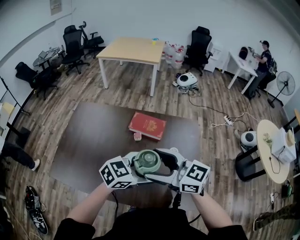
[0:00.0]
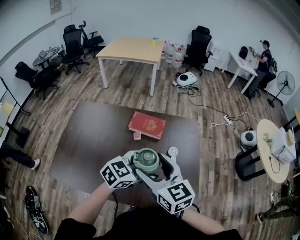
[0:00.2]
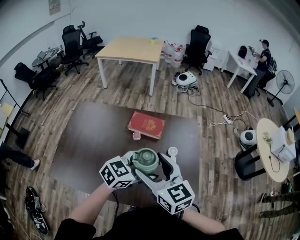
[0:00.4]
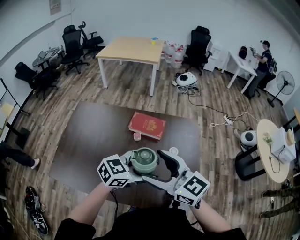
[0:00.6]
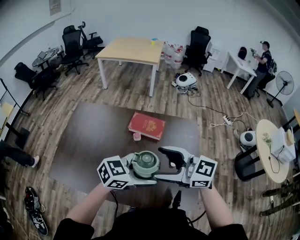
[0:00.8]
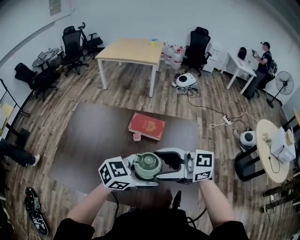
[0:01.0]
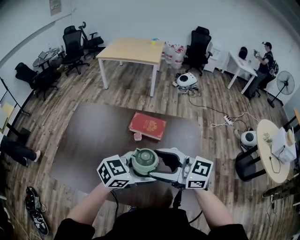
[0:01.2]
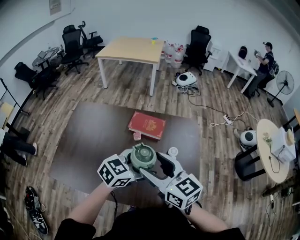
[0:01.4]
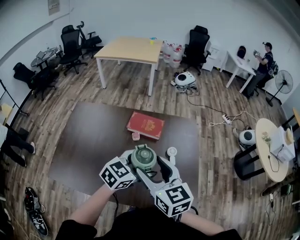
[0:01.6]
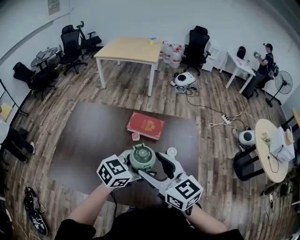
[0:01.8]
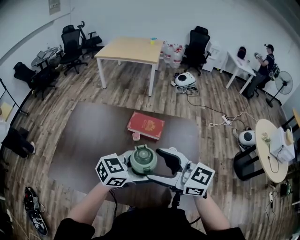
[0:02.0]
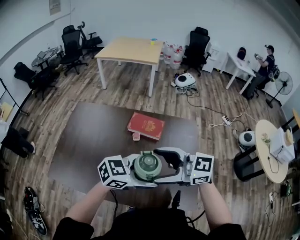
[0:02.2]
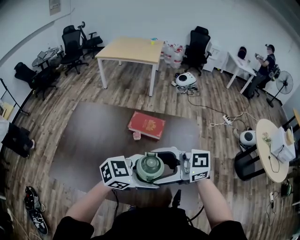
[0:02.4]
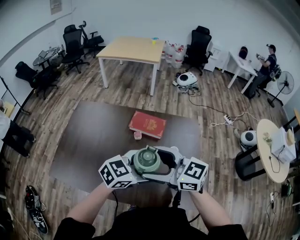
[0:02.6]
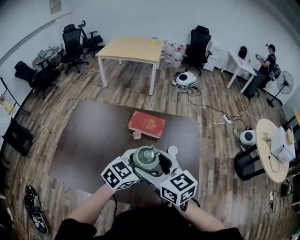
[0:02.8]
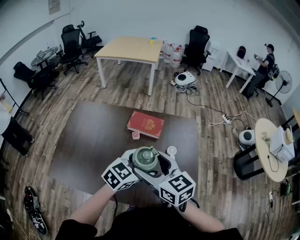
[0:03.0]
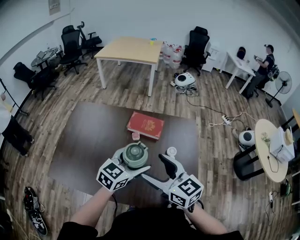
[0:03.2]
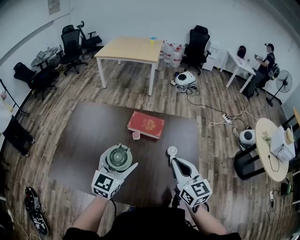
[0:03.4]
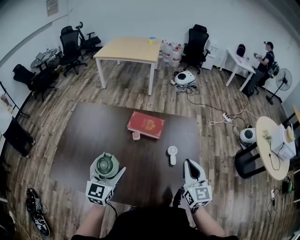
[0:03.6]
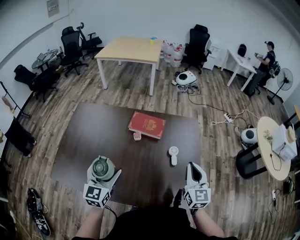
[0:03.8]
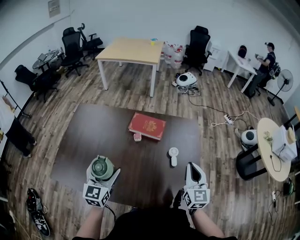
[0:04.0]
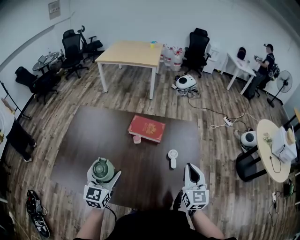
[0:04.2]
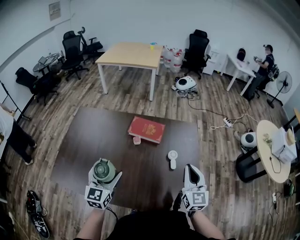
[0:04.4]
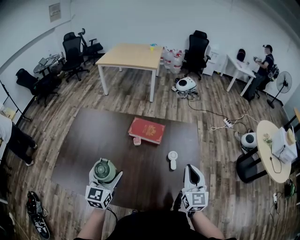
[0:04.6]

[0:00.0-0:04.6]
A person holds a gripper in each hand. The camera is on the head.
0:00.0 to 0:01.6: The right gripper rotates about 40 degrees.
0:03.0 to 0:04.6: The left gripper shifts approximately 15 cm to the left, and swivels about 40 degrees; the right gripper is displaced to the right by roughly 20 cm, changes its angle by roughly 40 degrees, and closes up.

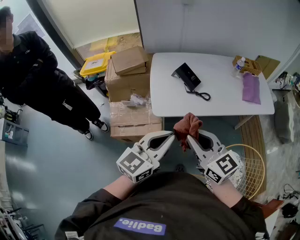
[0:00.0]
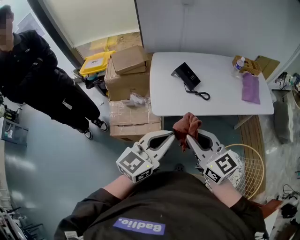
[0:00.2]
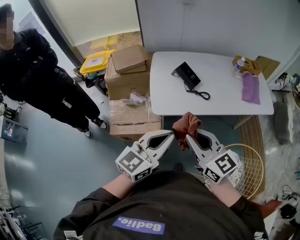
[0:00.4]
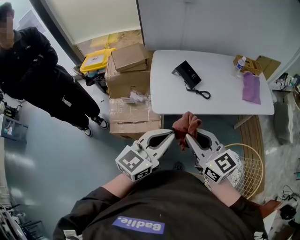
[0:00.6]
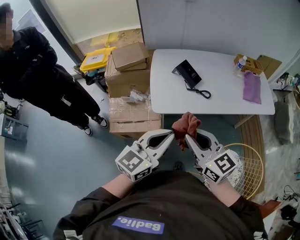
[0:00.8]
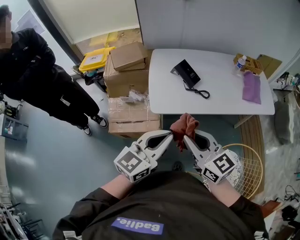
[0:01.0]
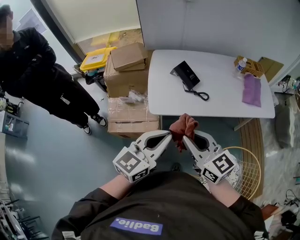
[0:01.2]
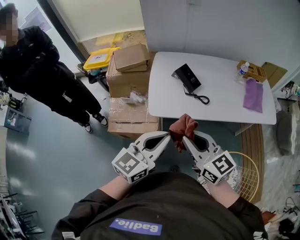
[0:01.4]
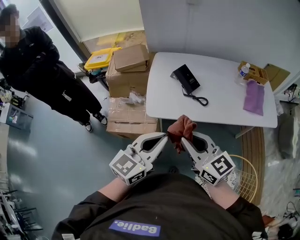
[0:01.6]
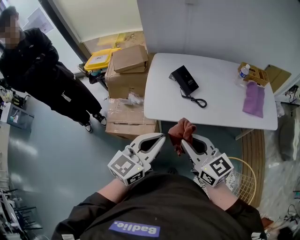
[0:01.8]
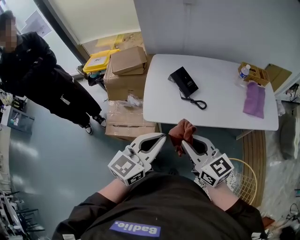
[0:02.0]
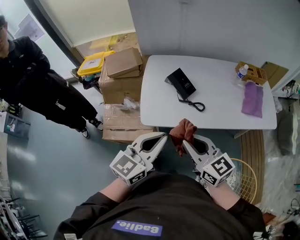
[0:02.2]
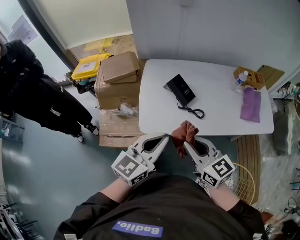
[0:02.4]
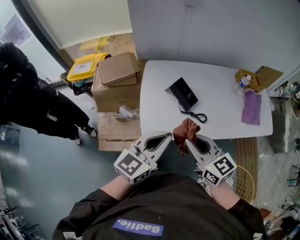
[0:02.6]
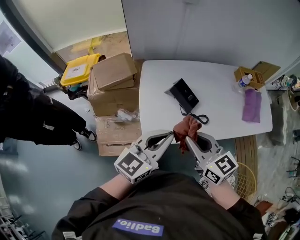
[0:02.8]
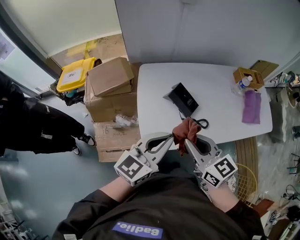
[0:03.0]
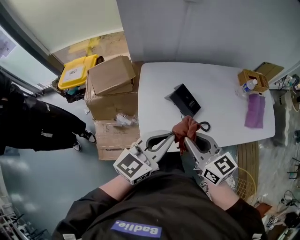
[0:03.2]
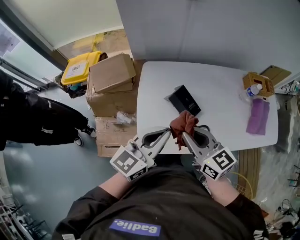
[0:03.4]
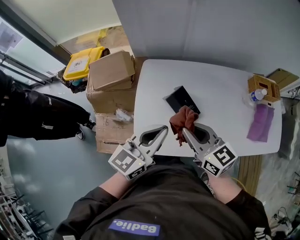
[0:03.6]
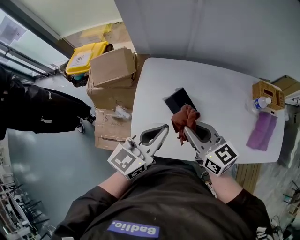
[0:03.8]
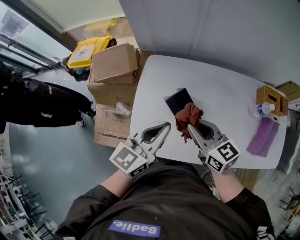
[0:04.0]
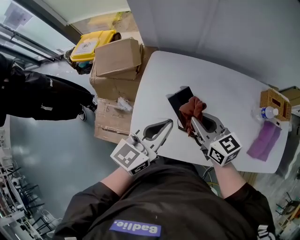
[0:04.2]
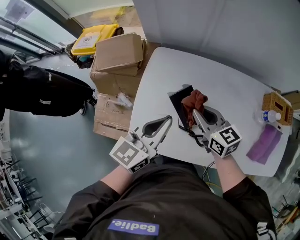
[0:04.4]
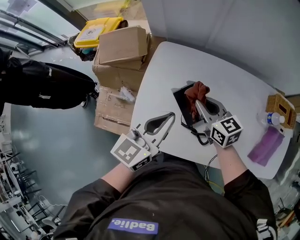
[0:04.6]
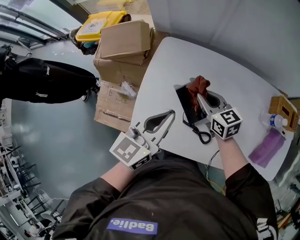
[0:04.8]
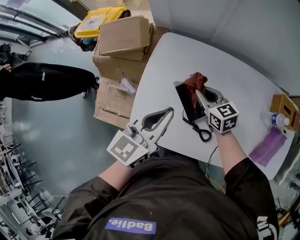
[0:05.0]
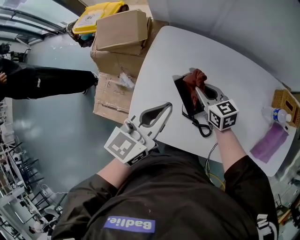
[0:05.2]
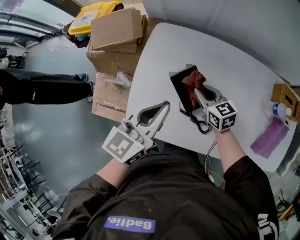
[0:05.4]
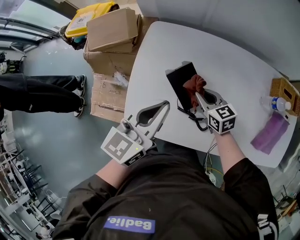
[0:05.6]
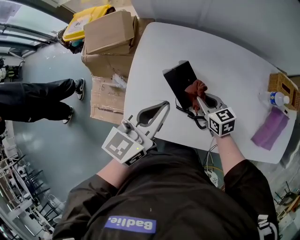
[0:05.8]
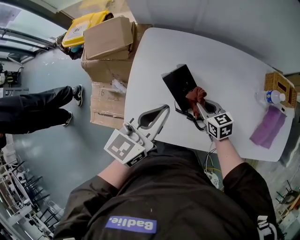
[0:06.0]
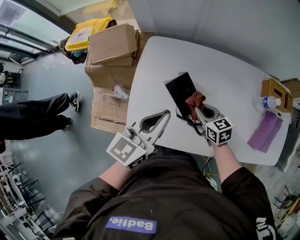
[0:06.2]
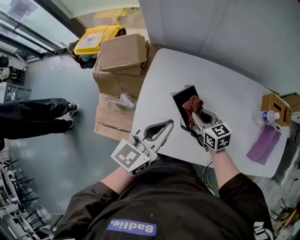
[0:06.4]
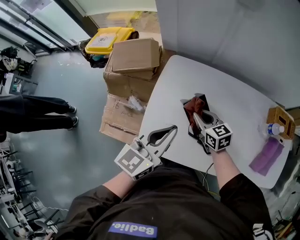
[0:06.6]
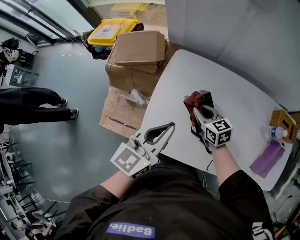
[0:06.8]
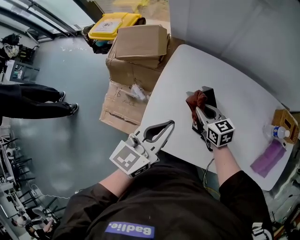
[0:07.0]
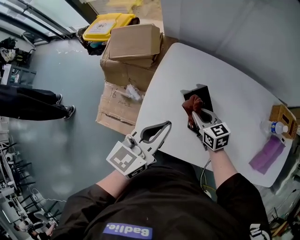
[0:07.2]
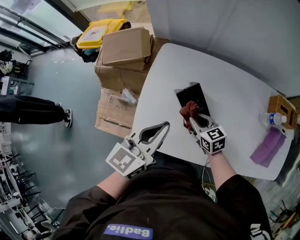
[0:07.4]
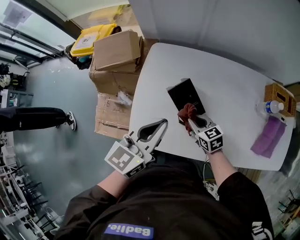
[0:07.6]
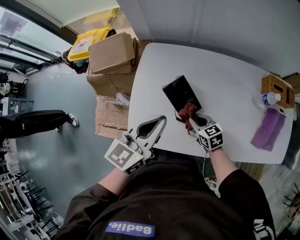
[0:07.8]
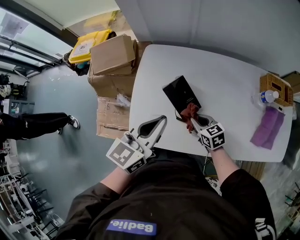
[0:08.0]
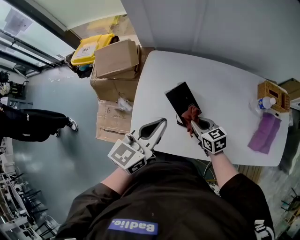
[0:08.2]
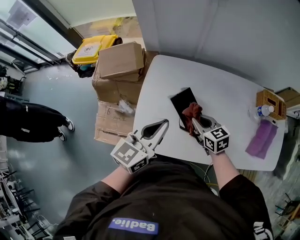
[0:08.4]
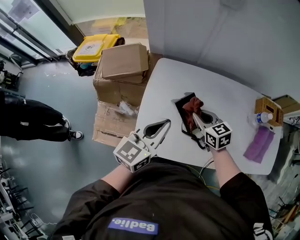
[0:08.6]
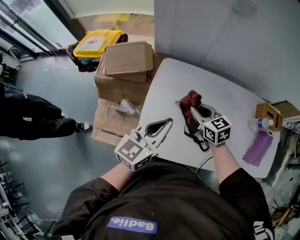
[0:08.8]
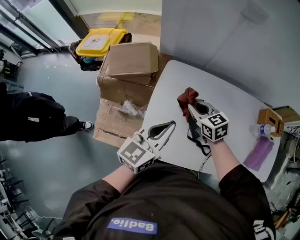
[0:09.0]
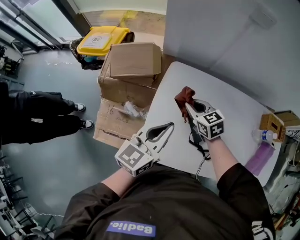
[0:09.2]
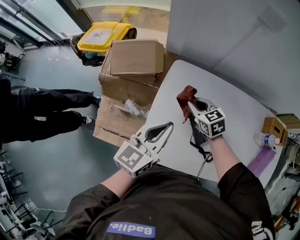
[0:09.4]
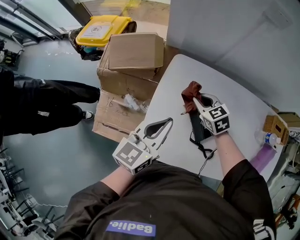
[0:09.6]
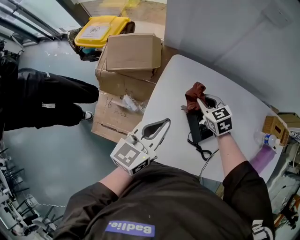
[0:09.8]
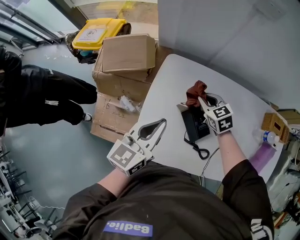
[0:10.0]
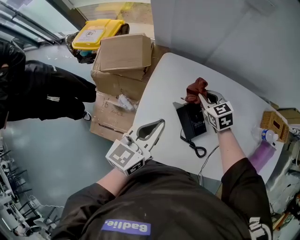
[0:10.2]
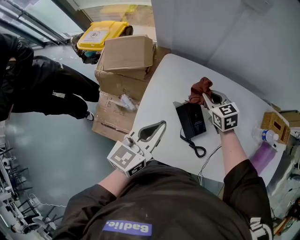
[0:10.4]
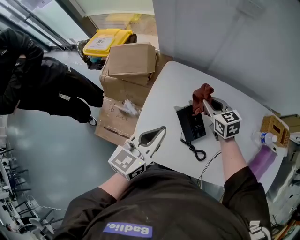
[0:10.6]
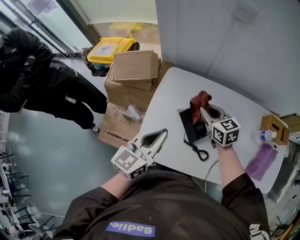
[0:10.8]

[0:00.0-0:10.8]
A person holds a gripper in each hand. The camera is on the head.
0:00.0 to 0:01.6: The grippers both shift to the right by some 5 cm.
0:01.6 to 0:03.0: The two grippers go approximately 20 cm forward.
0:03.0 to 0:04.6: The left gripper goes some 15 cm forward, to the right and downward, and swivels some 30 degrees; the right gripper goes some 25 cm forward and downward, and rotates some 20 degrees.
0:04.6 to 0:06.2: The right gripper goes about 10 cm downward and backward.
0:07.8 to 0:09.2: The left gripper shifts about 10 cm to the left and forward. Meanwhile the right gripper moves forward, to the left and upward, approximately 25 cm.
0:09.2 to 0:10.8: The right gripper goes about 10 cm to the right; the left gripper shifts some 5 cm backward.

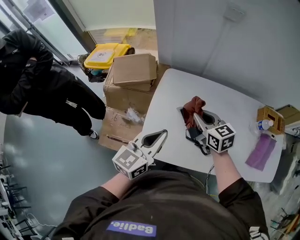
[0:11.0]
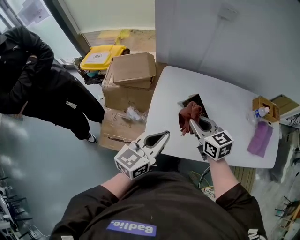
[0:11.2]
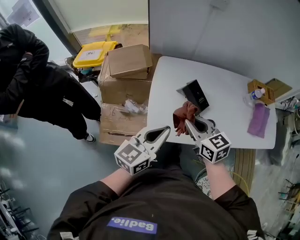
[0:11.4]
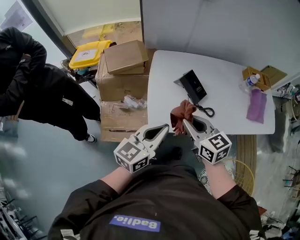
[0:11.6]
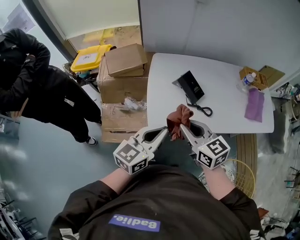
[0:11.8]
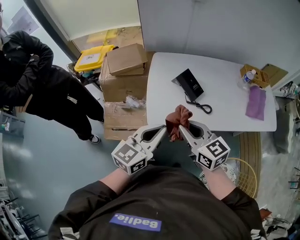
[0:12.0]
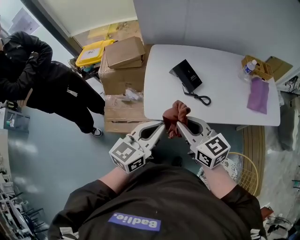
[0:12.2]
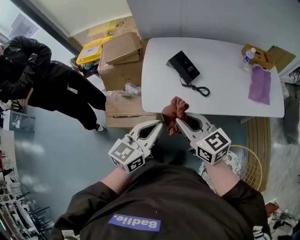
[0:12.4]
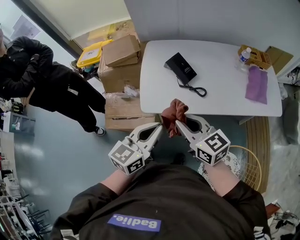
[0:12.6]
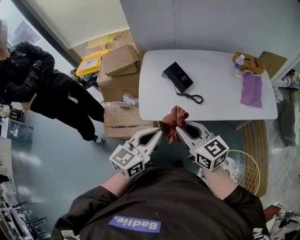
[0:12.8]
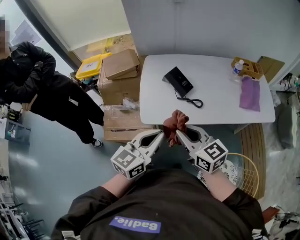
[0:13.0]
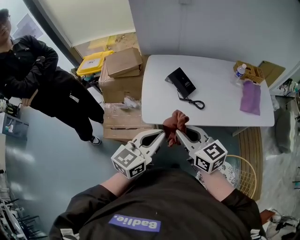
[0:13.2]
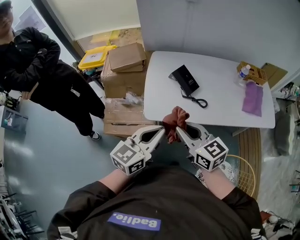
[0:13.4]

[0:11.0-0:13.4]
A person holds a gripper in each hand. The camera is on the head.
0:11.0 to 0:12.2: Both grippers move backward, about 25 cm.

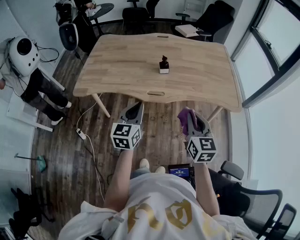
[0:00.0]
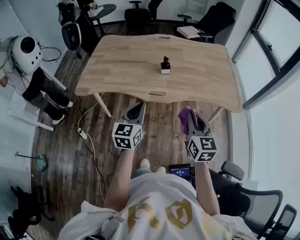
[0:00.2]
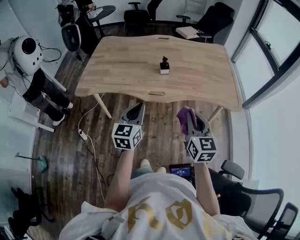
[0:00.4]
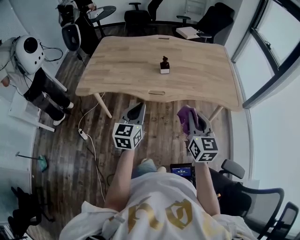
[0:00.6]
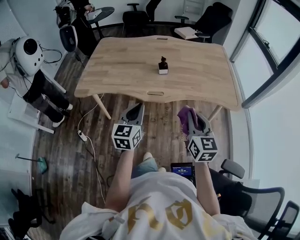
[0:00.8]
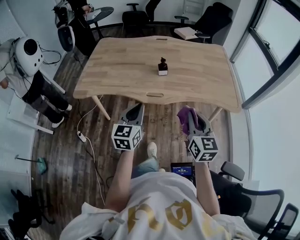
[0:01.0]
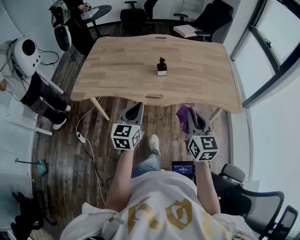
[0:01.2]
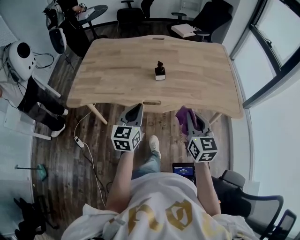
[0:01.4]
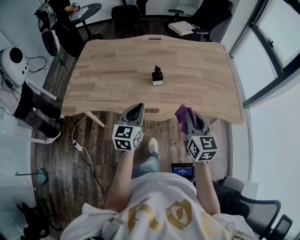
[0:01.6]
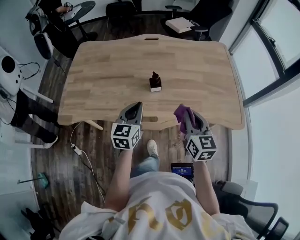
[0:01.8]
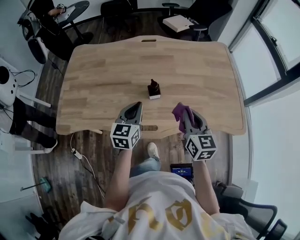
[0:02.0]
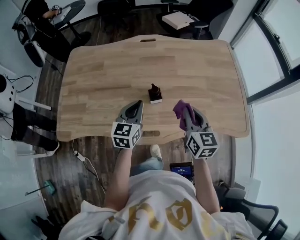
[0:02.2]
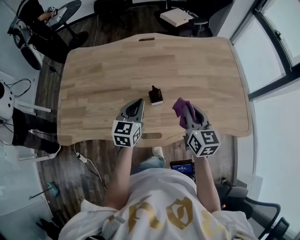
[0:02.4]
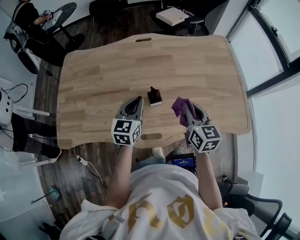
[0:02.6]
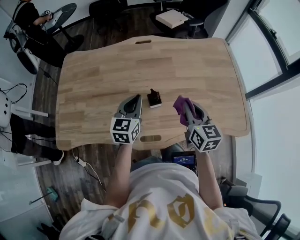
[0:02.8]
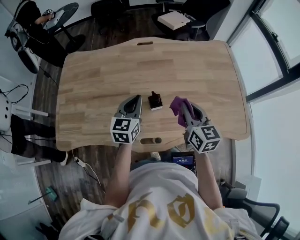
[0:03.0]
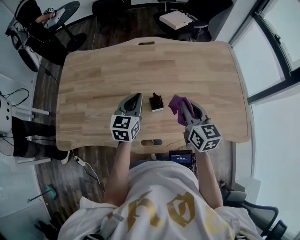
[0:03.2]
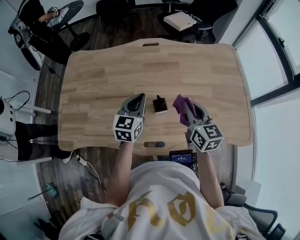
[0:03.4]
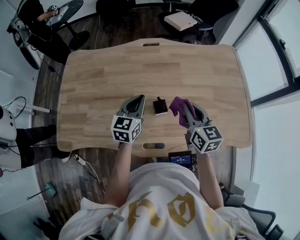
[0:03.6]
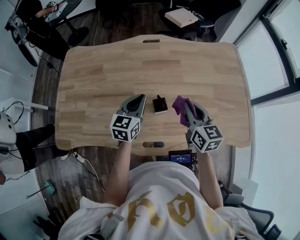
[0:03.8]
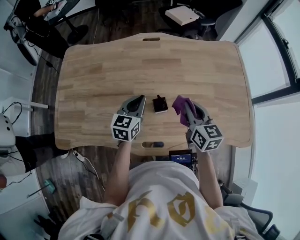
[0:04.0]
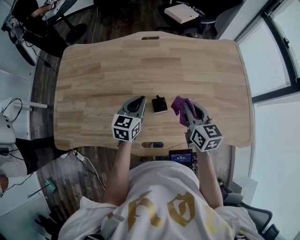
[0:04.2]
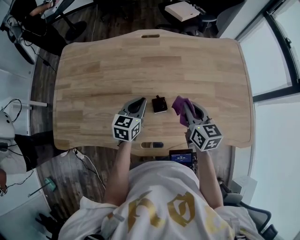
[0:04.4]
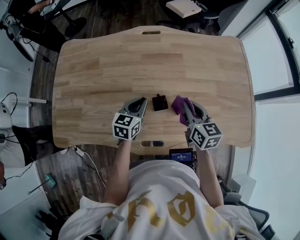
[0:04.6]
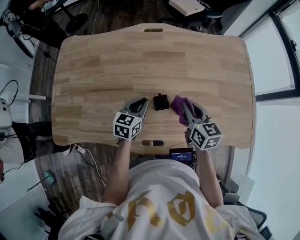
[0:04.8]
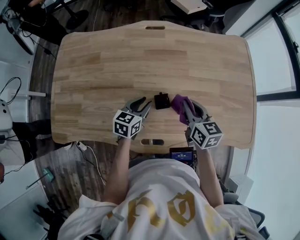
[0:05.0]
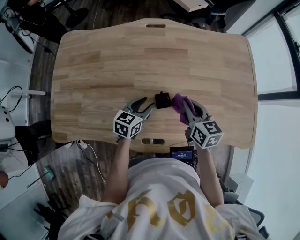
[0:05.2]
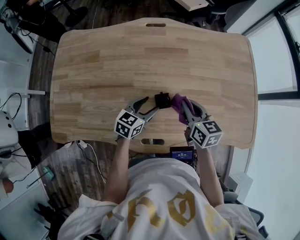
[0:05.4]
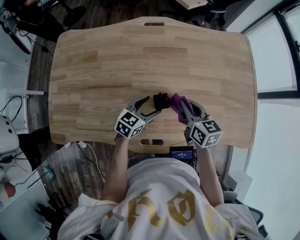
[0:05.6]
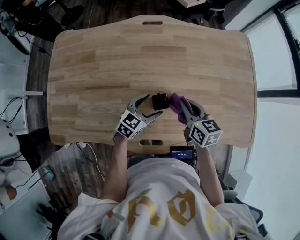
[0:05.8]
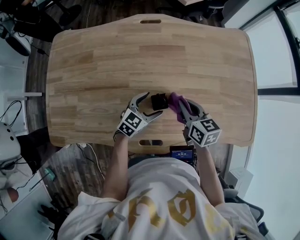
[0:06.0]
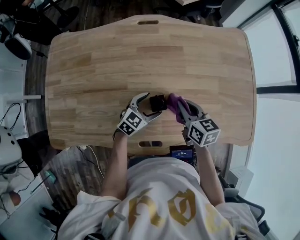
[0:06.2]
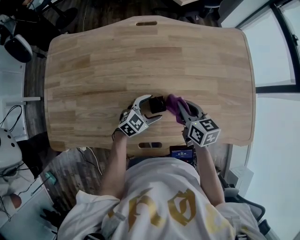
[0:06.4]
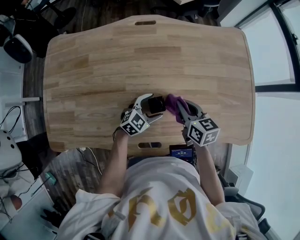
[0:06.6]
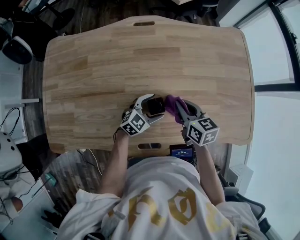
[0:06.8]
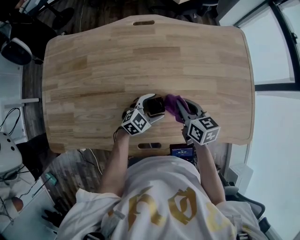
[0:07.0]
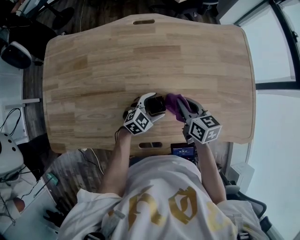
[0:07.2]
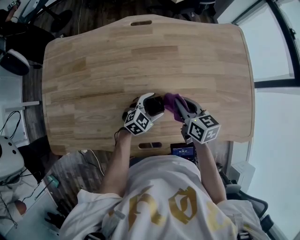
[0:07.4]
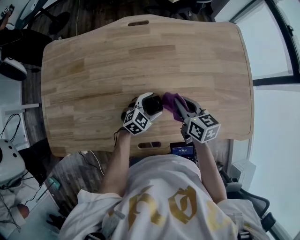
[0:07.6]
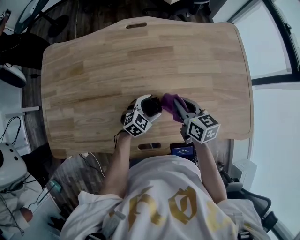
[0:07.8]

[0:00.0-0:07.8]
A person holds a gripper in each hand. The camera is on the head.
0:00.0 to 0:01.6: The grippers both shift forward by some 15 cm.
0:01.6 to 0:03.2: Both grippers travel together forward, some 25 cm.
0:03.2 to 0:04.6: The grippers both shift downward by about 10 cm.
0:04.6 to 0:06.2: The left gripper goes about 10 cm downward and to the right, changes its angle by approximately 30 degrees, and opens. The right gripper is displaced downward by approximately 5 cm.
0:06.2 to 0:07.8: The grippers move only a little.
